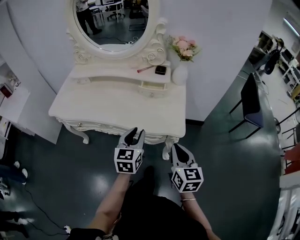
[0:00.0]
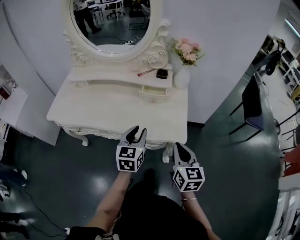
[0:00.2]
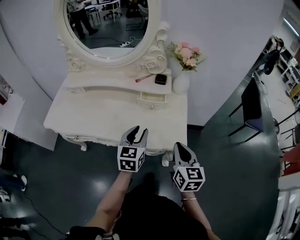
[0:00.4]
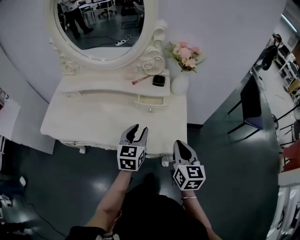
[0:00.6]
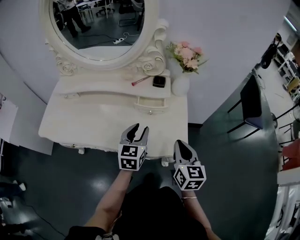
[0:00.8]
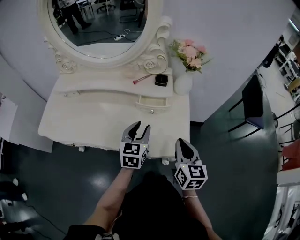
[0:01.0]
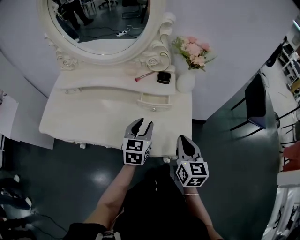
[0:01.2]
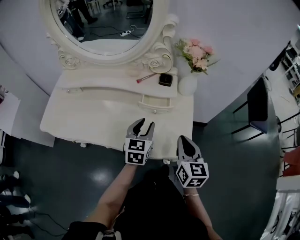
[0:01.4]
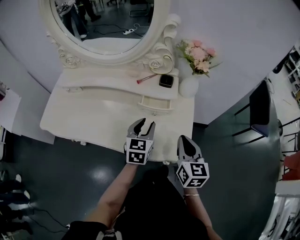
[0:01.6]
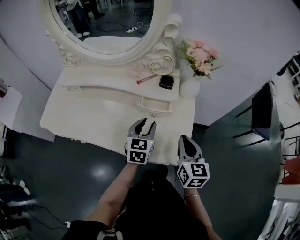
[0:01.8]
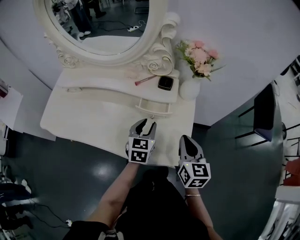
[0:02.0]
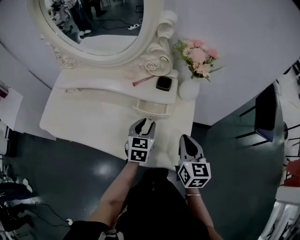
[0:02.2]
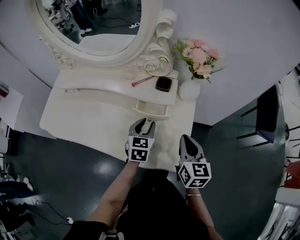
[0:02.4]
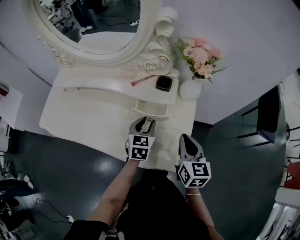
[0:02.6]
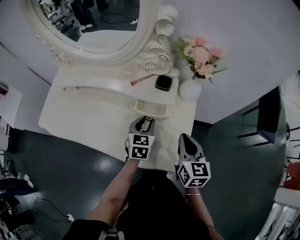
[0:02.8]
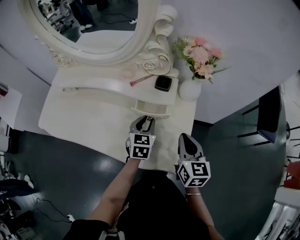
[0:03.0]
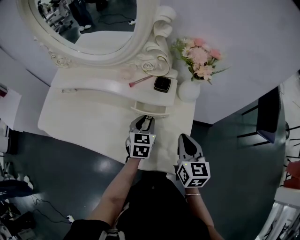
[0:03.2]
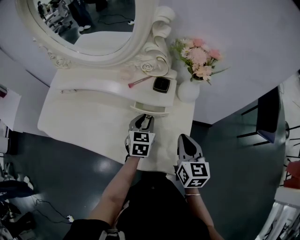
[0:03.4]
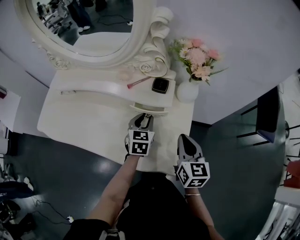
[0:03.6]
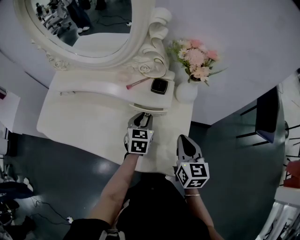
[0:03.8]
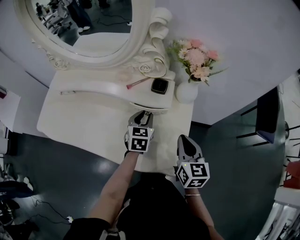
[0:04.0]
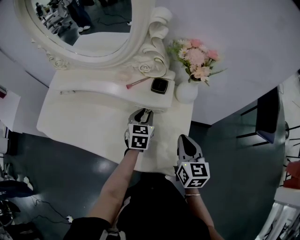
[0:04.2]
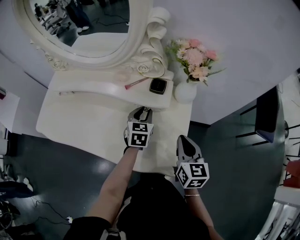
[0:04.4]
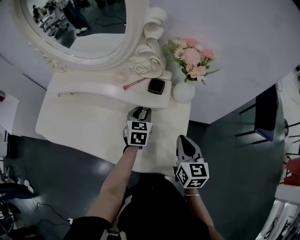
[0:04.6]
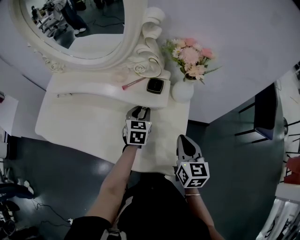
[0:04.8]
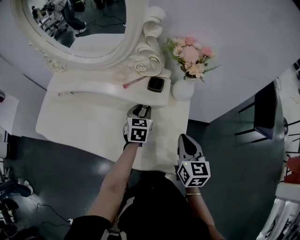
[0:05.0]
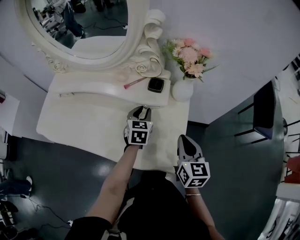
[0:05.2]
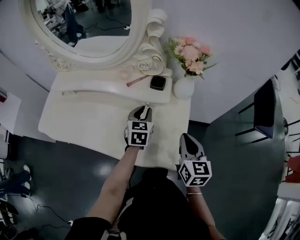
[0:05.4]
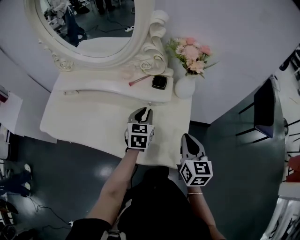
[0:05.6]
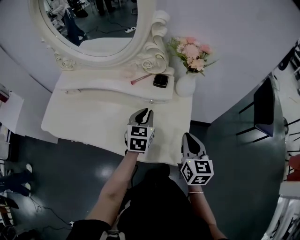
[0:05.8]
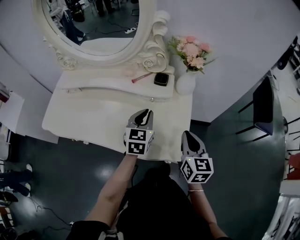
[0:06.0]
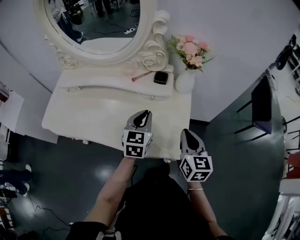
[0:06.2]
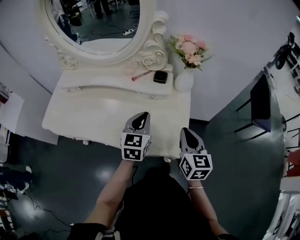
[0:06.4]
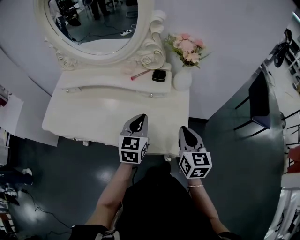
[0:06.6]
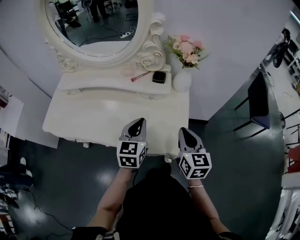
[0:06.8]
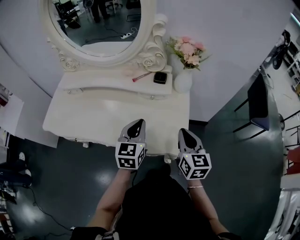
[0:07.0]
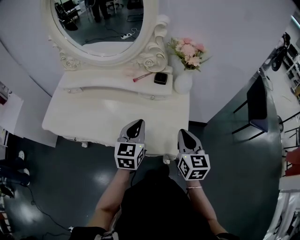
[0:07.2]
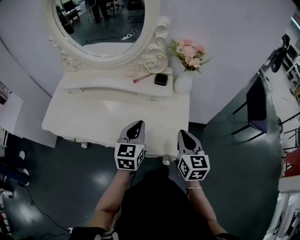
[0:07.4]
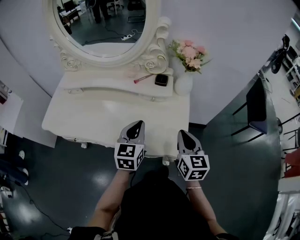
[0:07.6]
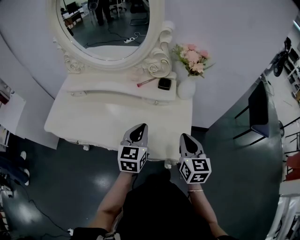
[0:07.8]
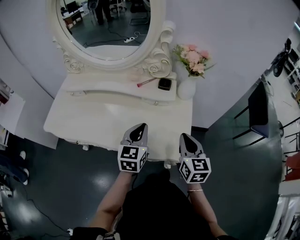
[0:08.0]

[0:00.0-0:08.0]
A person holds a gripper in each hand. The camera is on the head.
0:00.0 to 0:01.6: The grippers both shift forward by about 20 cm.
0:01.6 to 0:03.2: The two grippers go some 5 cm forward.
0:03.2 to 0:04.8: The left gripper travels forward by about 5 cm.
0:04.8 to 0:06.4: The left gripper travels backward and upward by some 15 cm, and closes its fingers. Meanwhile the right gripper heads backward, covering some 5 cm.
0:06.4 to 0:08.0: The grippers make only small movements.

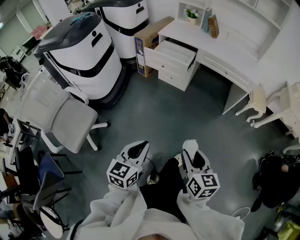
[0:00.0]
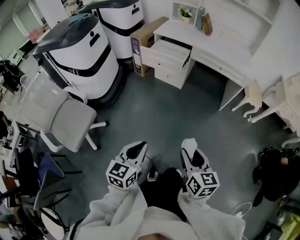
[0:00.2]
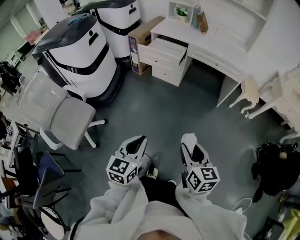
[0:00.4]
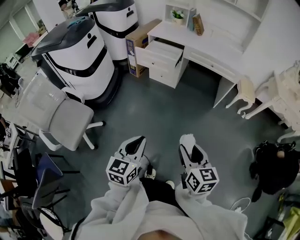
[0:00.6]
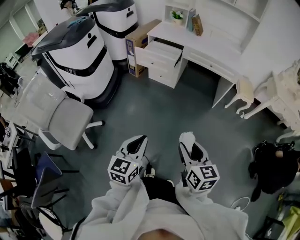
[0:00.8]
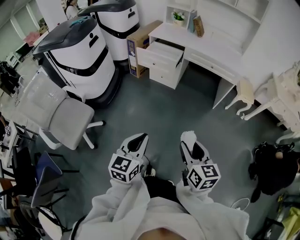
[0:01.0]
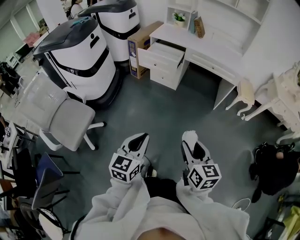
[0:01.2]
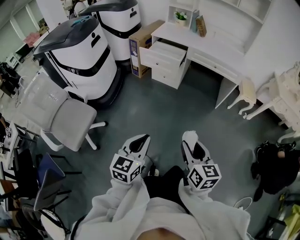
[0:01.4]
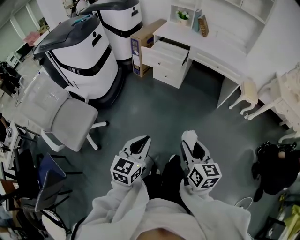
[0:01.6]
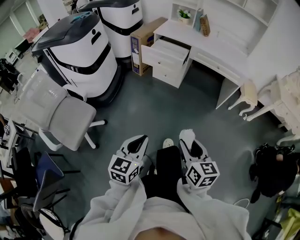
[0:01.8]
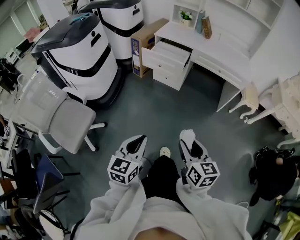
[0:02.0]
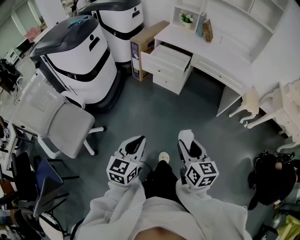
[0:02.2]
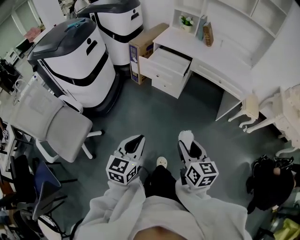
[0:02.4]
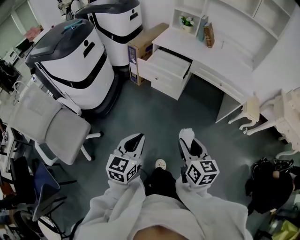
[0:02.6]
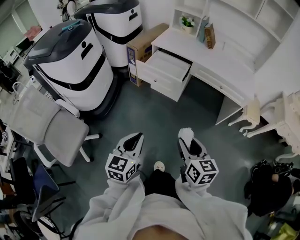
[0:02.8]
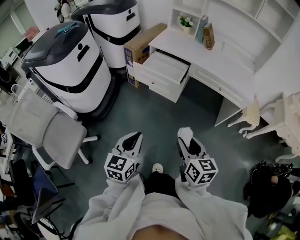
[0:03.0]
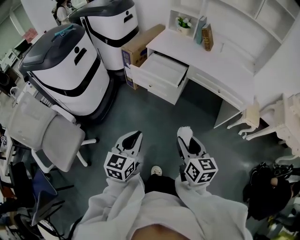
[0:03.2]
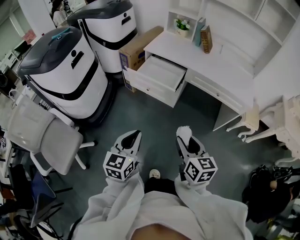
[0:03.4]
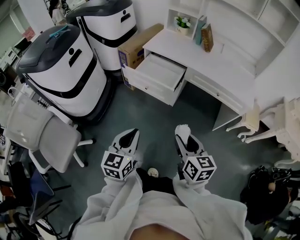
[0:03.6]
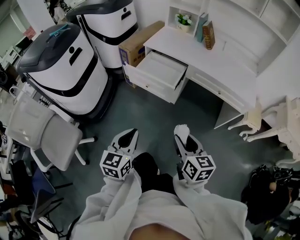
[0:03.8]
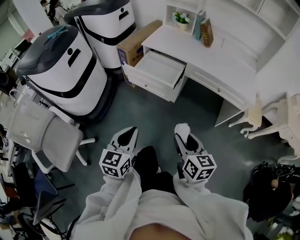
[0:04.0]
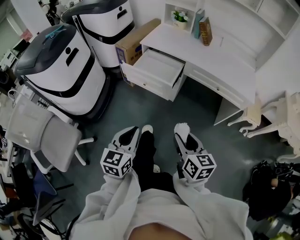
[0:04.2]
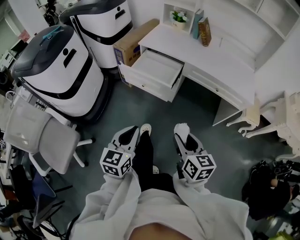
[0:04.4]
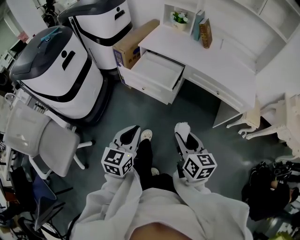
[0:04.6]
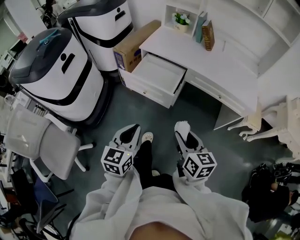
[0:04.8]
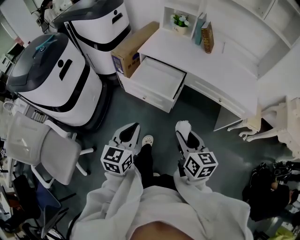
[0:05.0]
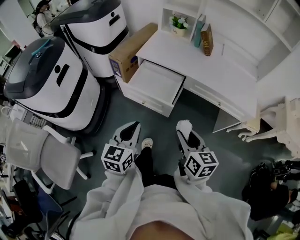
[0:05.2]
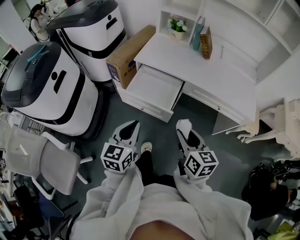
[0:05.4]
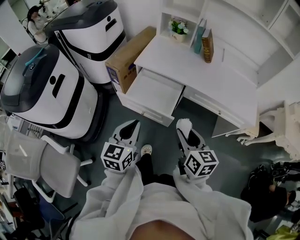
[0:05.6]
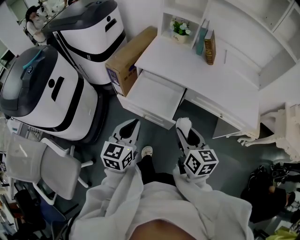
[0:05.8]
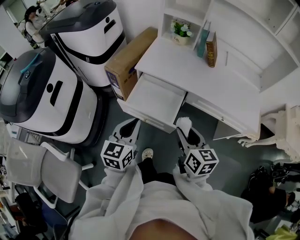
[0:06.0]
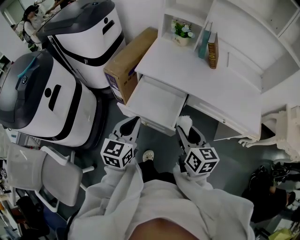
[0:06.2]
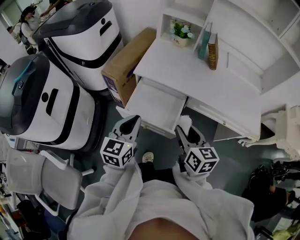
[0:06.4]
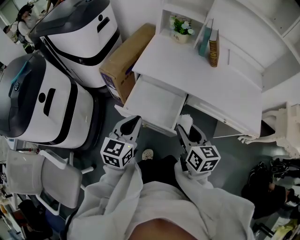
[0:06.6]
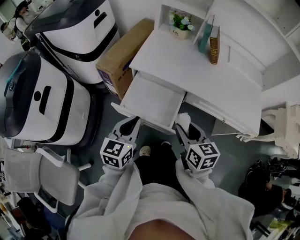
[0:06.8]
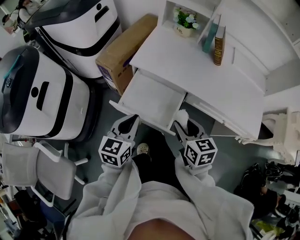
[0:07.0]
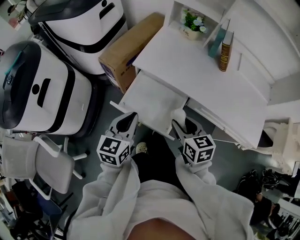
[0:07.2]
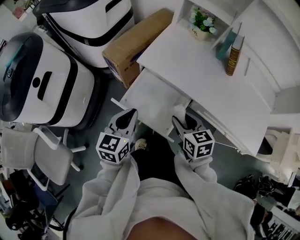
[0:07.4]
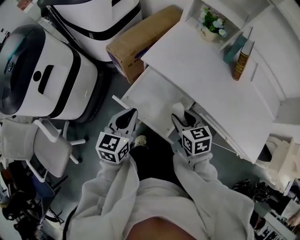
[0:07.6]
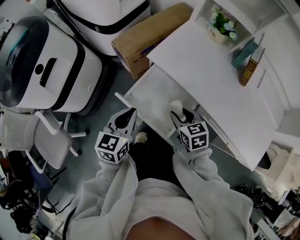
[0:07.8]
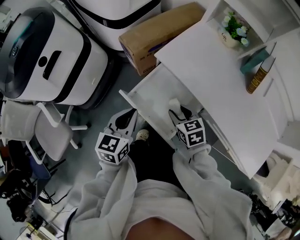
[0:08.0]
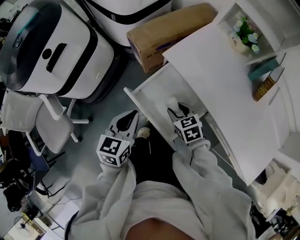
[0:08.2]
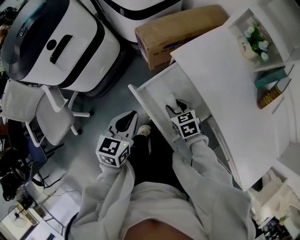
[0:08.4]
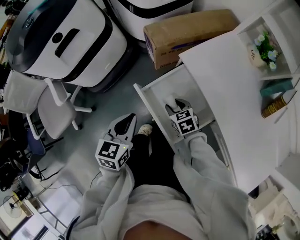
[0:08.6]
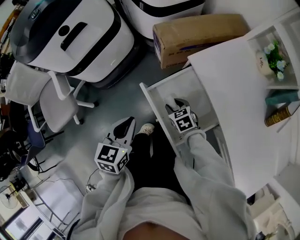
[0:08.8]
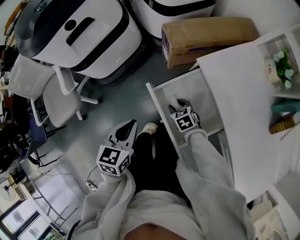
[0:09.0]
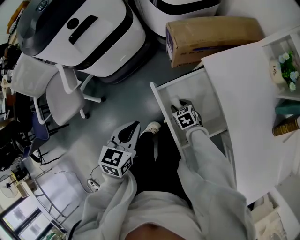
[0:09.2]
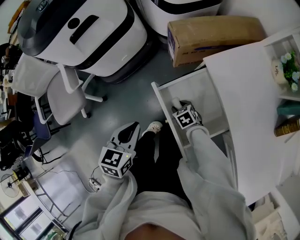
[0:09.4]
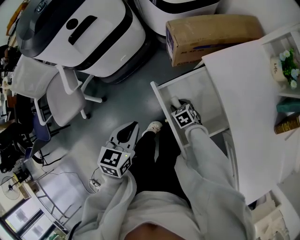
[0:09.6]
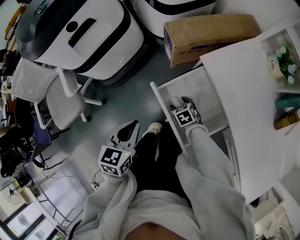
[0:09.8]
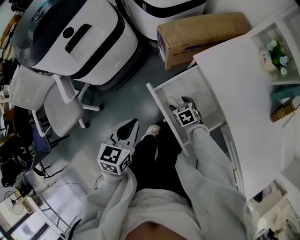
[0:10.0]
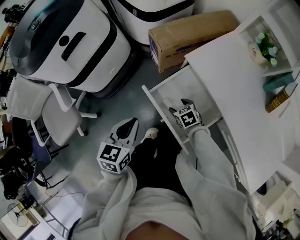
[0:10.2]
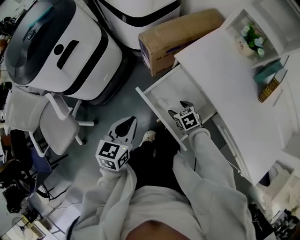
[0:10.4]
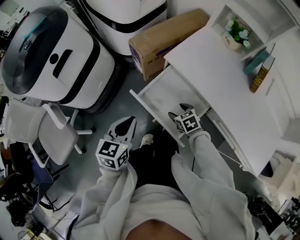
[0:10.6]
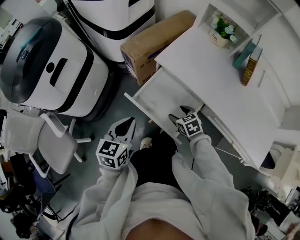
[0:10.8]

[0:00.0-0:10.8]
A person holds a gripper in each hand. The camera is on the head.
0:00.0 to 0:01.6: The two grippers go about 5 cm backward.
0:01.6 to 0:03.0: The two grippers go roughly 25 cm forward.
0:03.0 to 0:04.6: Both grippers move forward, roughly 10 cm.
0:04.6 to 0:06.2: Both grippers move forward, about 30 cm.
0:06.2 to 0:07.8: The left gripper ends up roughly 10 cm from where it was, and swivels about 20 degrees. The right gripper ends up approximately 20 cm from where it was, and turns by roughly 40 degrees.
0:07.8 to 0:09.2: The left gripper shifts by some 10 cm, and changes its angle by about 30 degrees; the right gripper goes roughly 20 cm downward, and turns by approximately 40 degrees.
0:09.2 to 0:10.8: The right gripper ends up roughly 15 cm from where it was, rotates about 30 degrees, and opens up, while the left gripper changes place by approximately 5 cm, and swivels approximately 30 degrees.

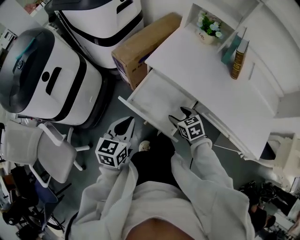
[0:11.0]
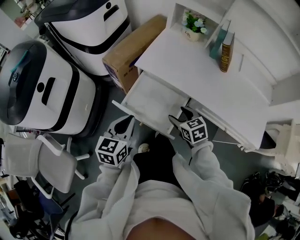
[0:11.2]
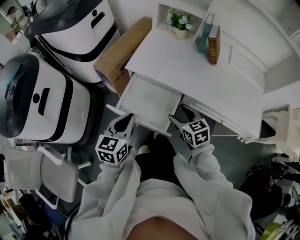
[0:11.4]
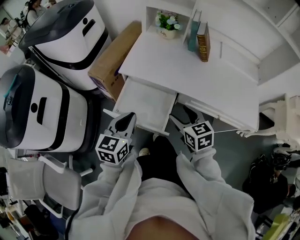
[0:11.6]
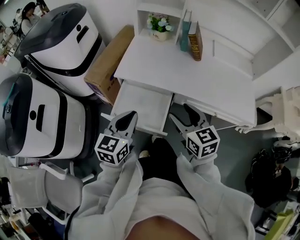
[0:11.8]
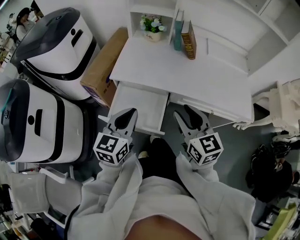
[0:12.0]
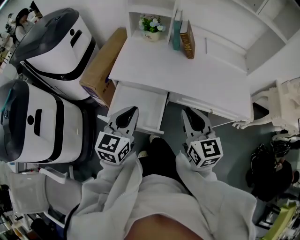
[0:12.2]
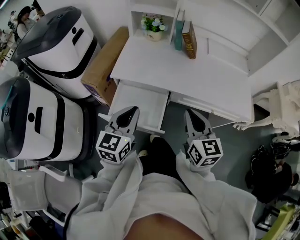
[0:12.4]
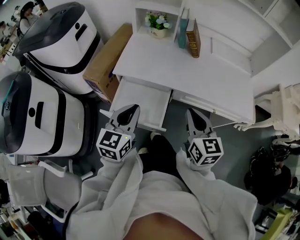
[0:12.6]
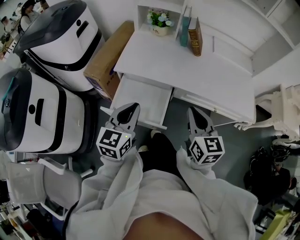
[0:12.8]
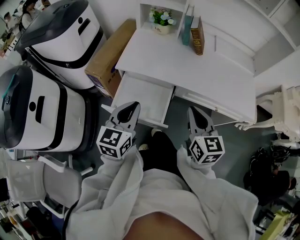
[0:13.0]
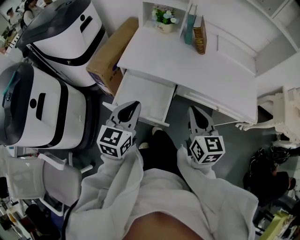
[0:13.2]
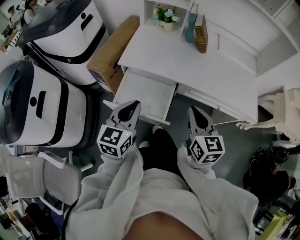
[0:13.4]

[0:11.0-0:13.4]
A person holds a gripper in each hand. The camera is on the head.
0:11.0 to 0:12.2: The left gripper shifts by roughly 15 cm, and changes its angle by roughly 30 degrees; the right gripper is displaced upward by about 25 cm, points its fingers some 40 degrees further upward, and closes up.
0:12.2 to 0:13.4: The grippers move only a little.

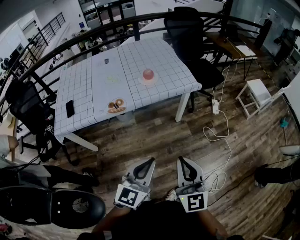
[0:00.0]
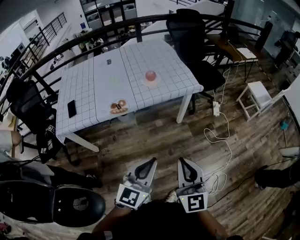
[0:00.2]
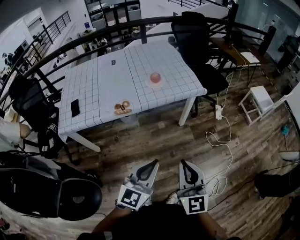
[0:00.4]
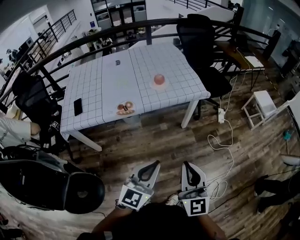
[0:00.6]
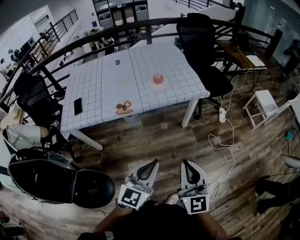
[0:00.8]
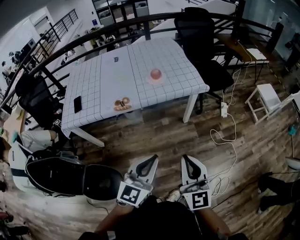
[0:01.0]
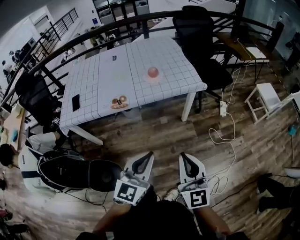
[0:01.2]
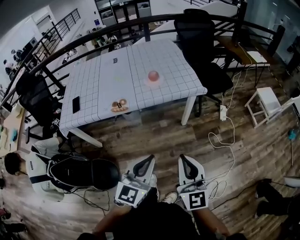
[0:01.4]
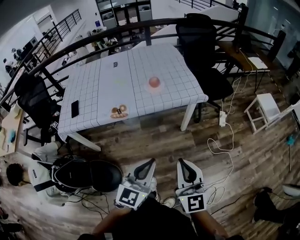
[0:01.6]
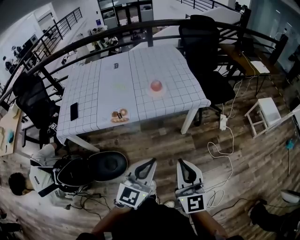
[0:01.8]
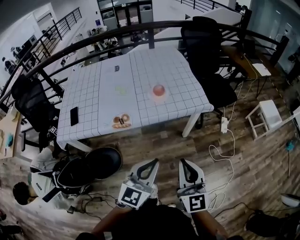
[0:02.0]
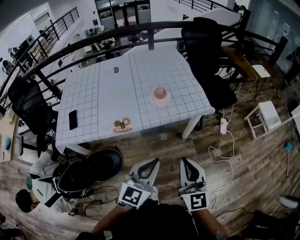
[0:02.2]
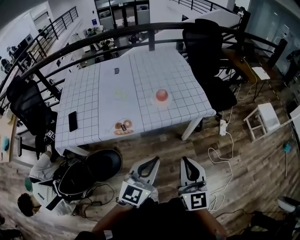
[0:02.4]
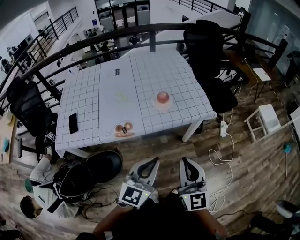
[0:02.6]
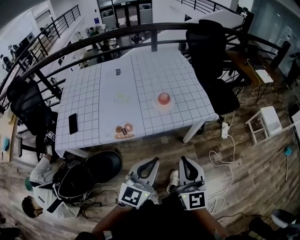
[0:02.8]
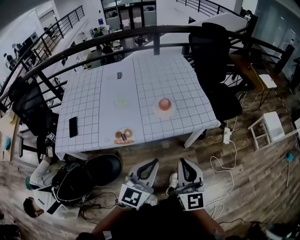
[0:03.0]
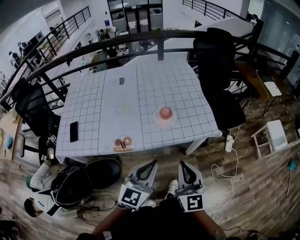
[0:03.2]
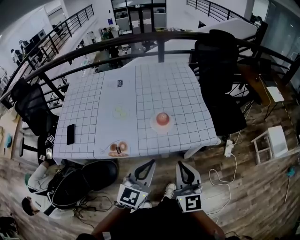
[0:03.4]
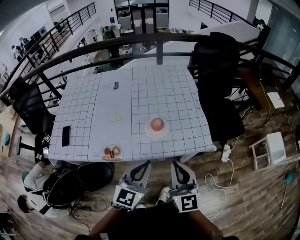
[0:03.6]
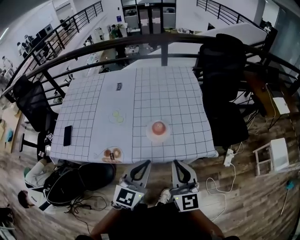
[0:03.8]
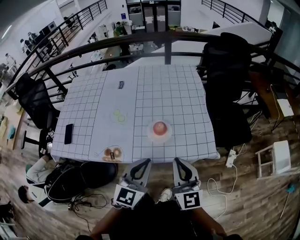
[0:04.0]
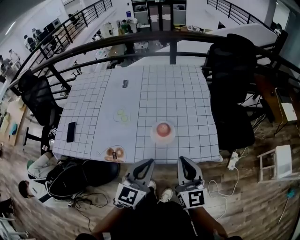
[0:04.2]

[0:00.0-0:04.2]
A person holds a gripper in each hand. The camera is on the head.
0:00.0 to 0:01.4: The grippers stay close to where they were, moving slightly.
0:01.4 to 0:02.8: The two grippers go some 20 cm forward and to the left.
0:02.8 to 0:04.2: Both grippers travel together forward, roughly 25 cm.
